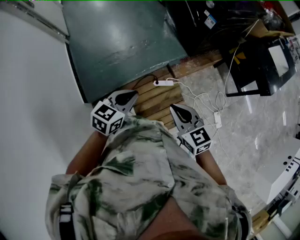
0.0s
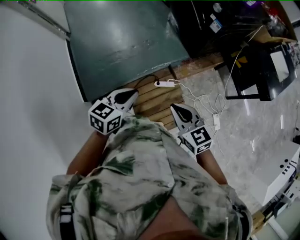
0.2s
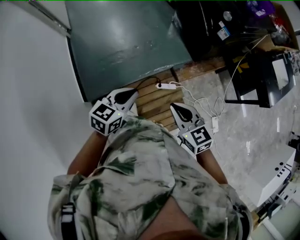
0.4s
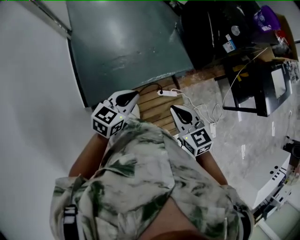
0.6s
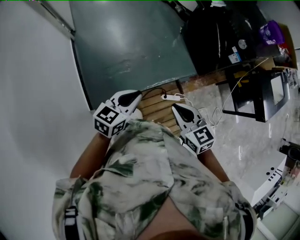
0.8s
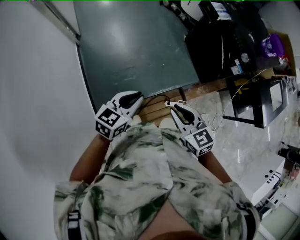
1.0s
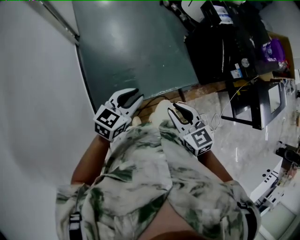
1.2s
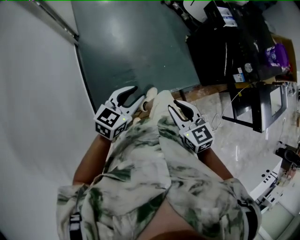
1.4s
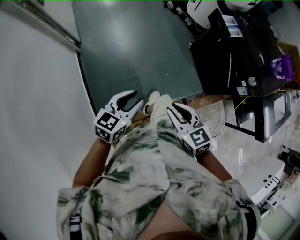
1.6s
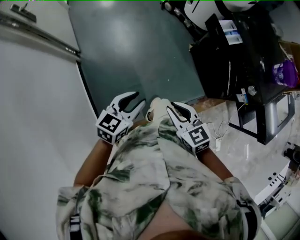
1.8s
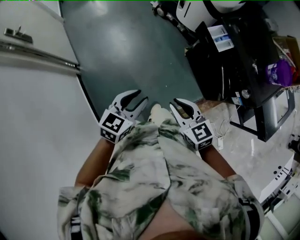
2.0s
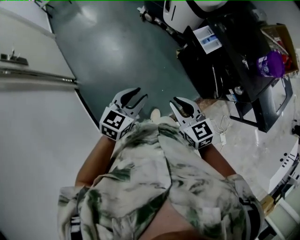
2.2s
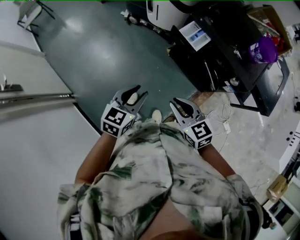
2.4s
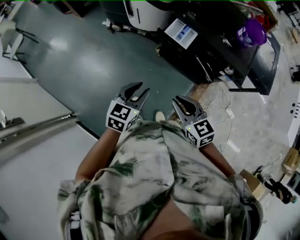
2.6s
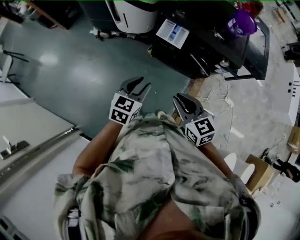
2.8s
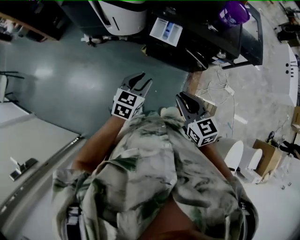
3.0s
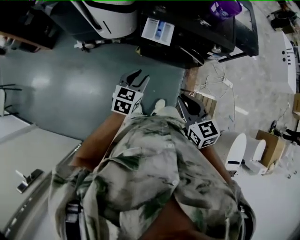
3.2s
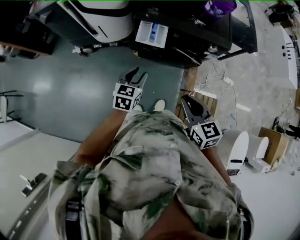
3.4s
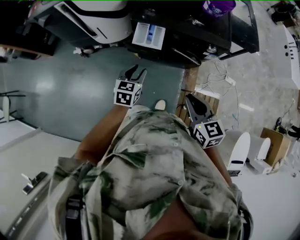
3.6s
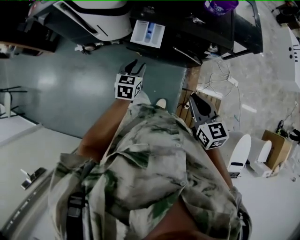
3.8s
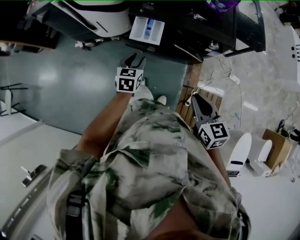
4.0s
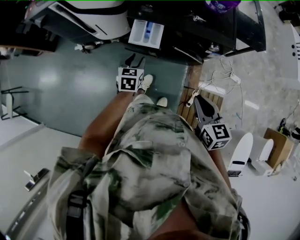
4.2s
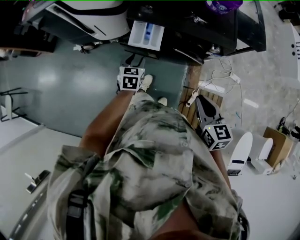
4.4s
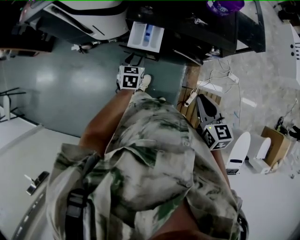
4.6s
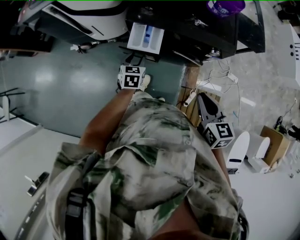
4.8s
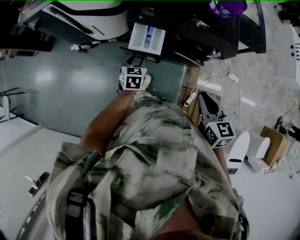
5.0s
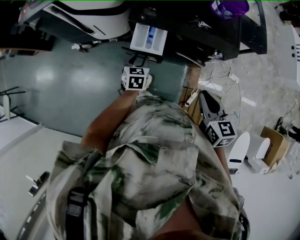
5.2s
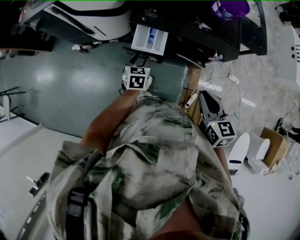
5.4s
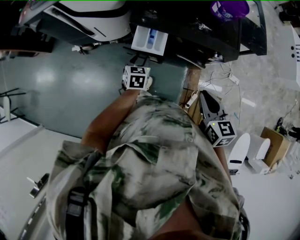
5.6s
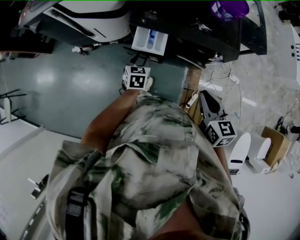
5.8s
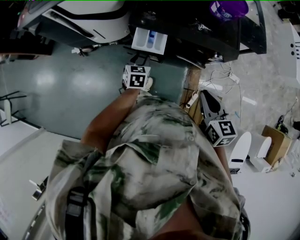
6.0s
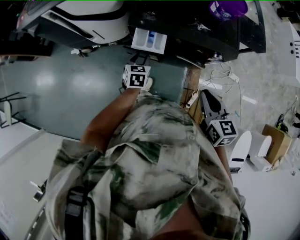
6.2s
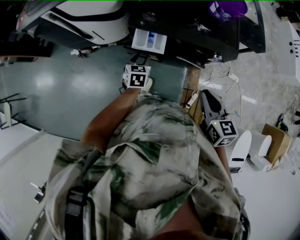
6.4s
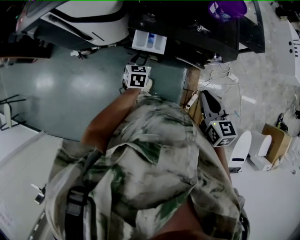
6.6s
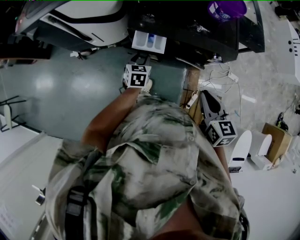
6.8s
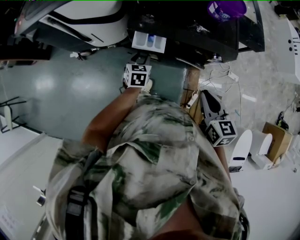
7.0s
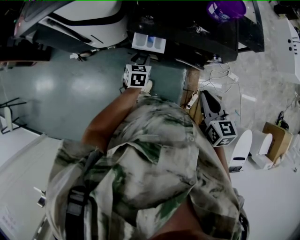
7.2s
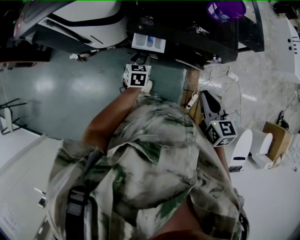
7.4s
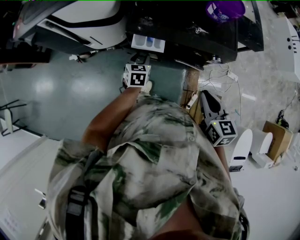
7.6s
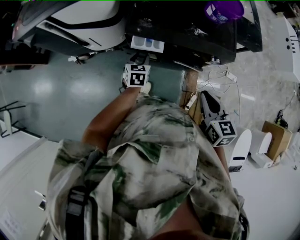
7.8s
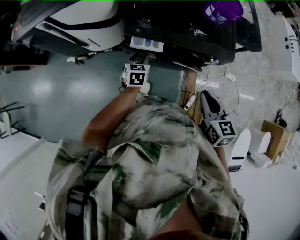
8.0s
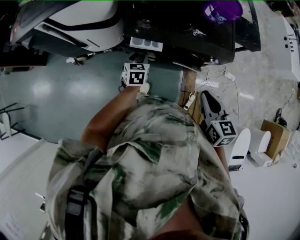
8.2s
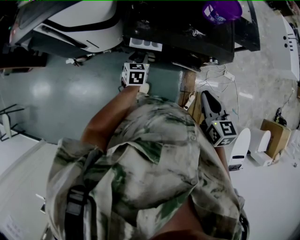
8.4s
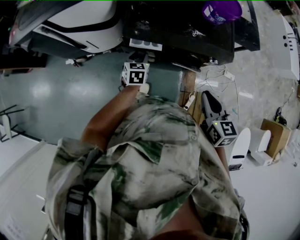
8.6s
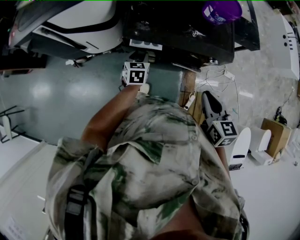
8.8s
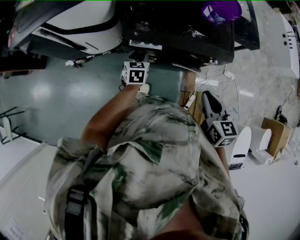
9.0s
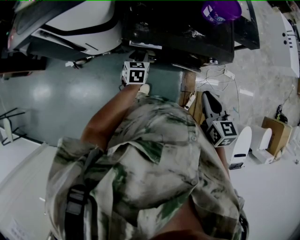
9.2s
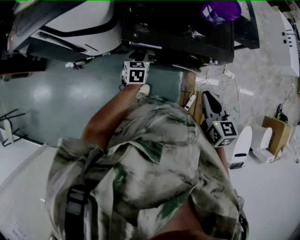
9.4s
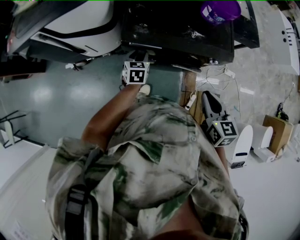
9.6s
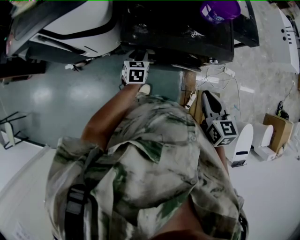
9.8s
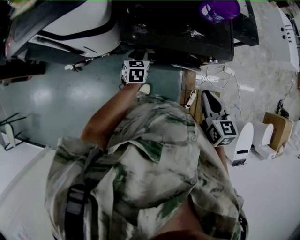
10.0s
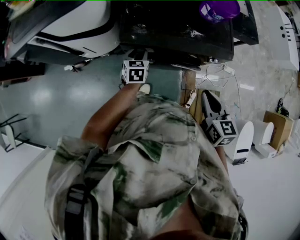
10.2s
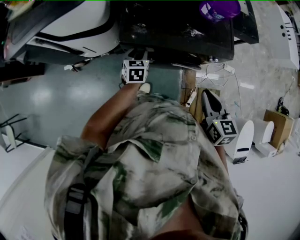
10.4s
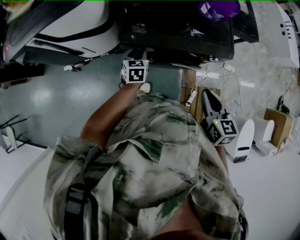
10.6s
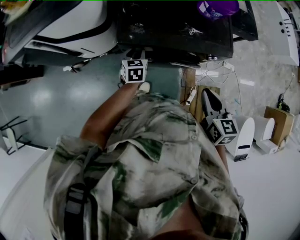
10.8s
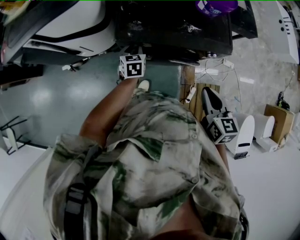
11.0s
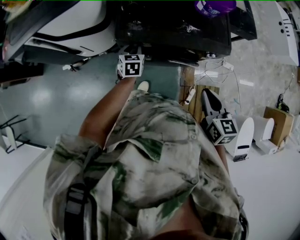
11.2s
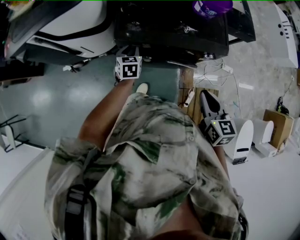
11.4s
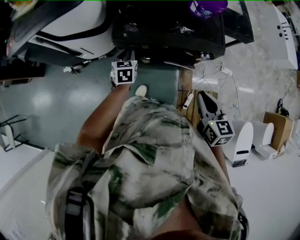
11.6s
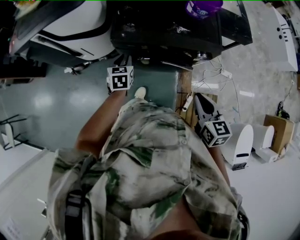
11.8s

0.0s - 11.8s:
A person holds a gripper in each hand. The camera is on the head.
0.0s - 1.4s: Both grippers are carried to the left and forward, roughly 40 cm. The right gripper opens. Meanwhile the left gripper opens.
1.4s - 3.0s: The two grippers travel together, roughly 50 cm. The left gripper turns by about 50 degrees. The right gripper turns by some 60 degrees.
3.0s - 4.4s: The right gripper is displaced to the right and forward by roughly 20 cm, and rotates some 20 degrees. The left gripper travels forward and downward by some 25 cm.
4.4s - 6.0s: The grippers both shift forward by roughly 5 cm.
6.0s - 7.4s: The grippers make only small movements.
7.4s - 8.8s: The grippers move only a little.
8.8s - 10.4s: There are only small adjustments of the grippers.
10.4s - 11.8s: The left gripper heads backward and upward, covering roughly 10 cm, while the right gripper shifts some 5 cm backward.

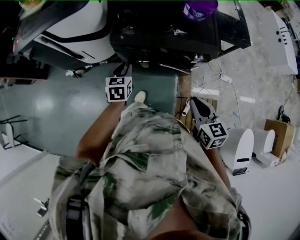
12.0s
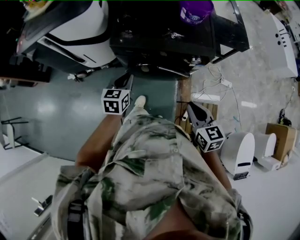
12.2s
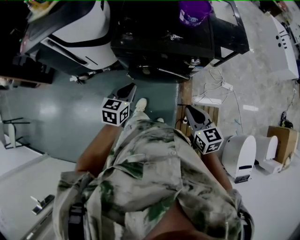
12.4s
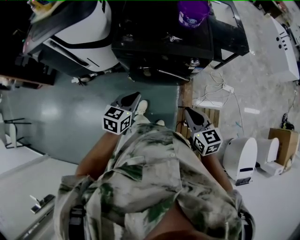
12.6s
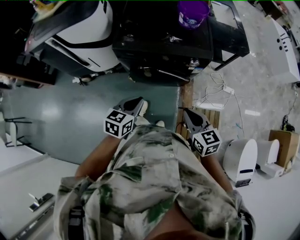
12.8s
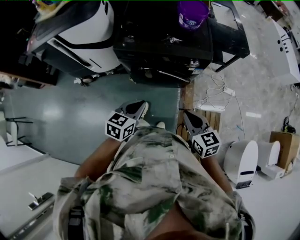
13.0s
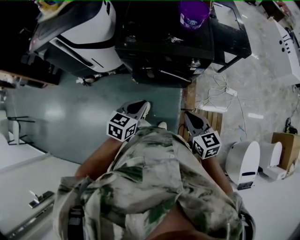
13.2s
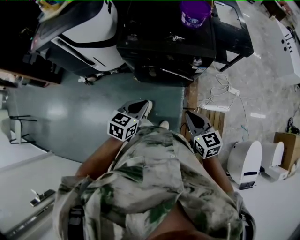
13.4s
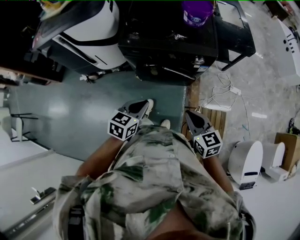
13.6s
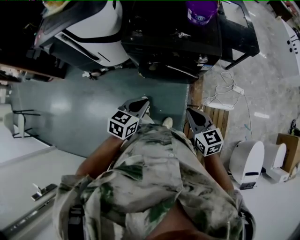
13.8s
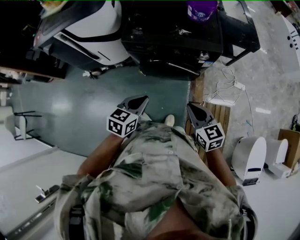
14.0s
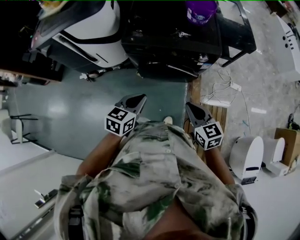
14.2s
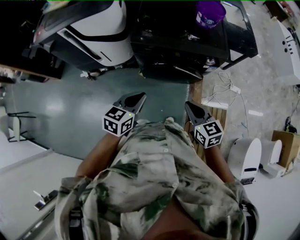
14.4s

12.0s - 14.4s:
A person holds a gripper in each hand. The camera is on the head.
12.0s - 13.2s: The right gripper heads backward, covering about 10 cm. The left gripper shifts roughly 25 cm backward and to the right, and swivels about 20 degrees.
13.2s - 14.4s: Both grippers travel together to the left, roughly 10 cm.

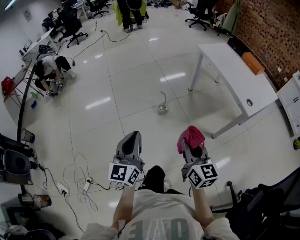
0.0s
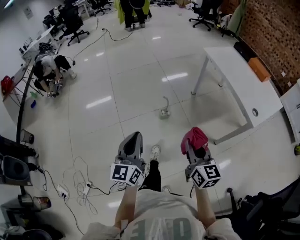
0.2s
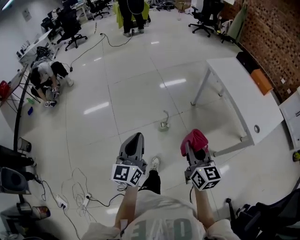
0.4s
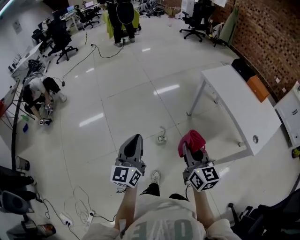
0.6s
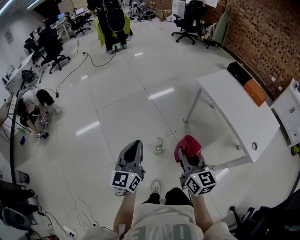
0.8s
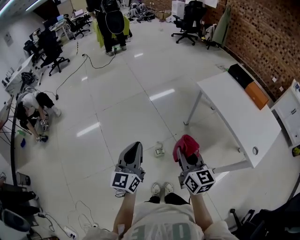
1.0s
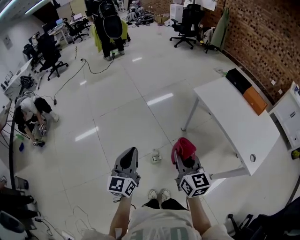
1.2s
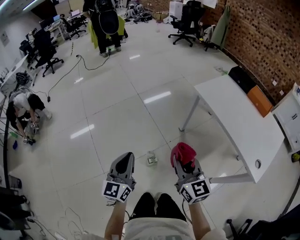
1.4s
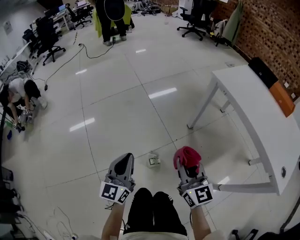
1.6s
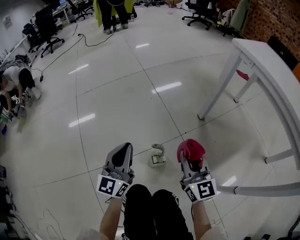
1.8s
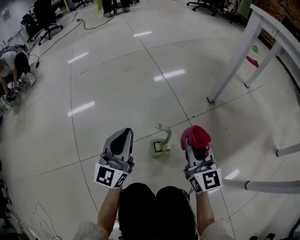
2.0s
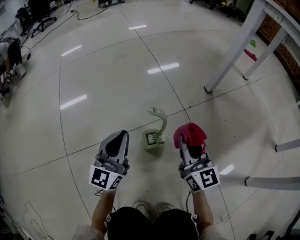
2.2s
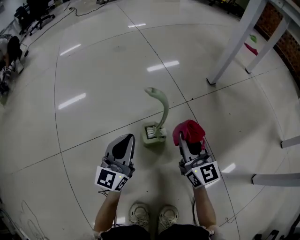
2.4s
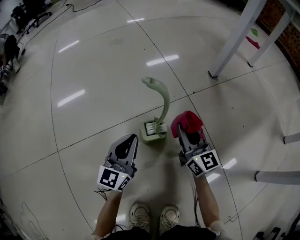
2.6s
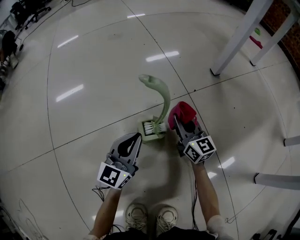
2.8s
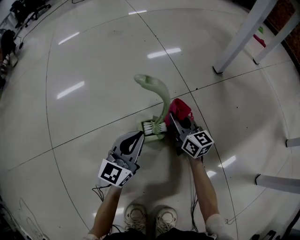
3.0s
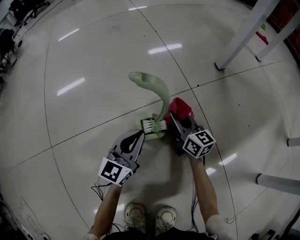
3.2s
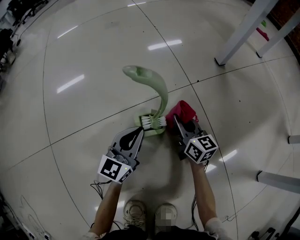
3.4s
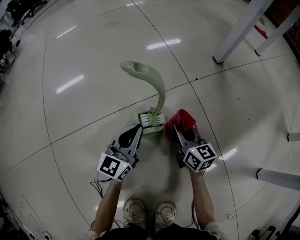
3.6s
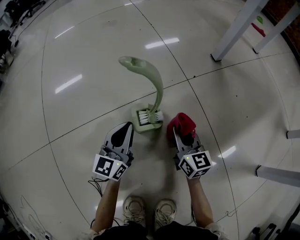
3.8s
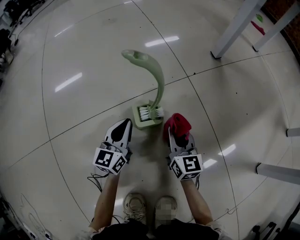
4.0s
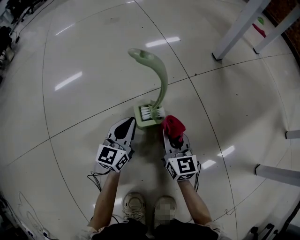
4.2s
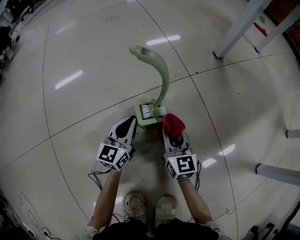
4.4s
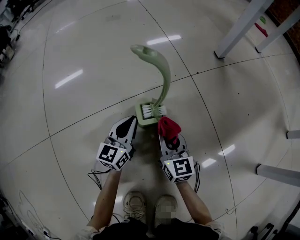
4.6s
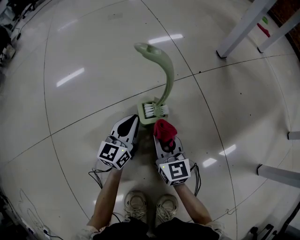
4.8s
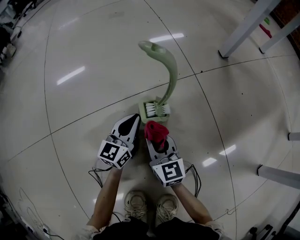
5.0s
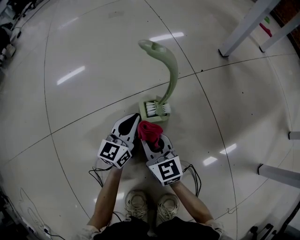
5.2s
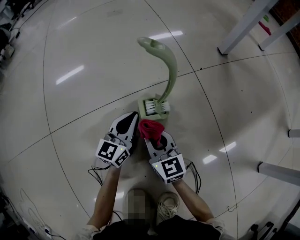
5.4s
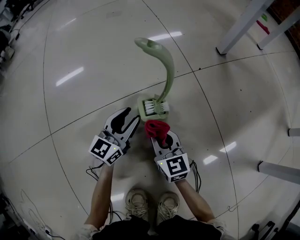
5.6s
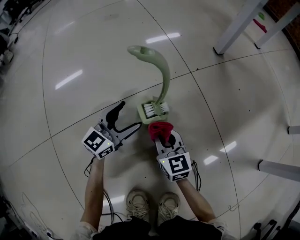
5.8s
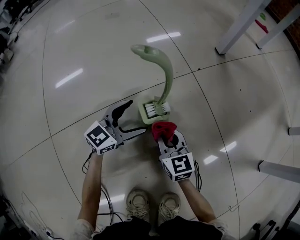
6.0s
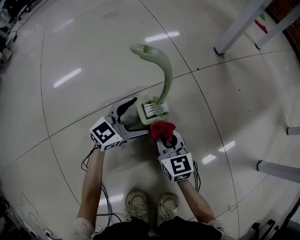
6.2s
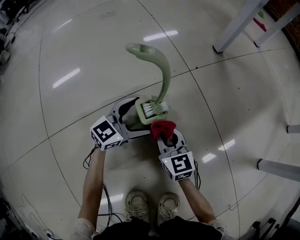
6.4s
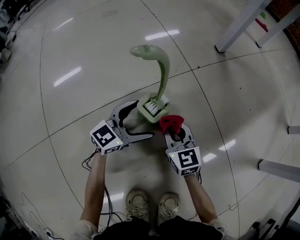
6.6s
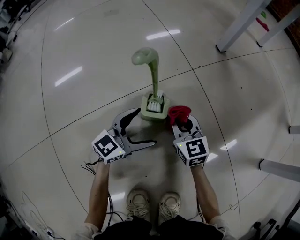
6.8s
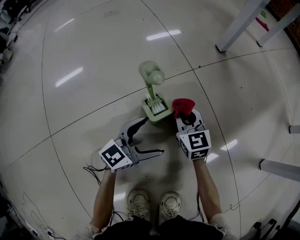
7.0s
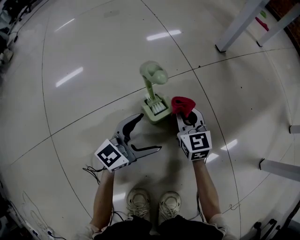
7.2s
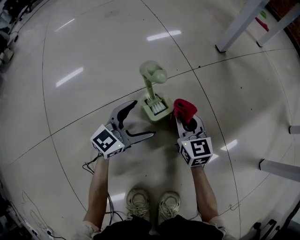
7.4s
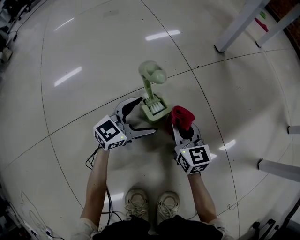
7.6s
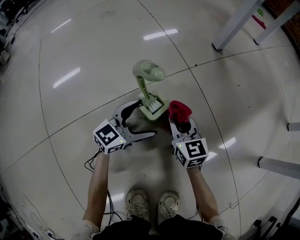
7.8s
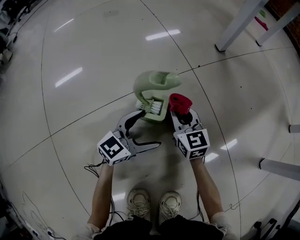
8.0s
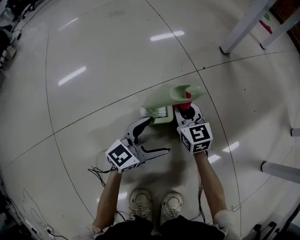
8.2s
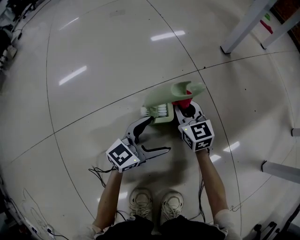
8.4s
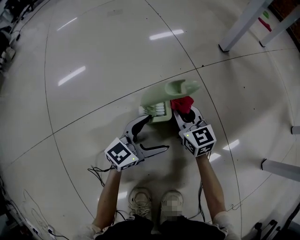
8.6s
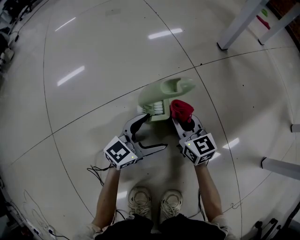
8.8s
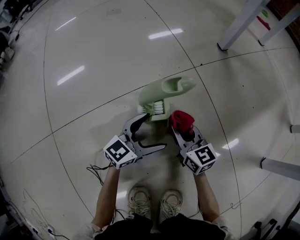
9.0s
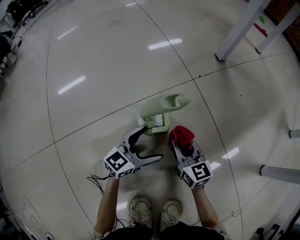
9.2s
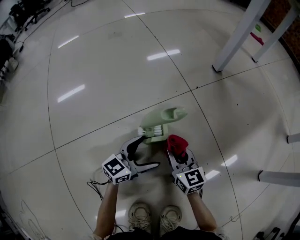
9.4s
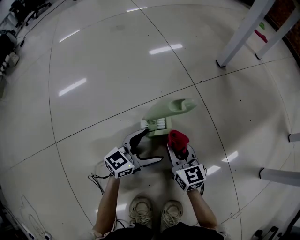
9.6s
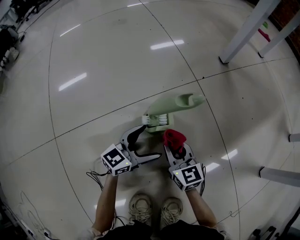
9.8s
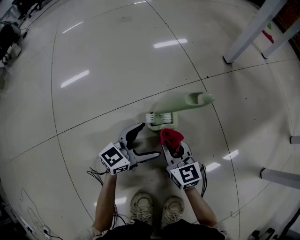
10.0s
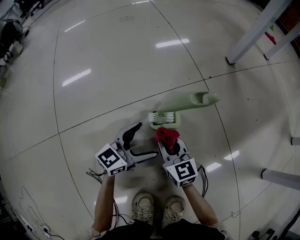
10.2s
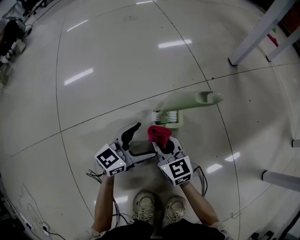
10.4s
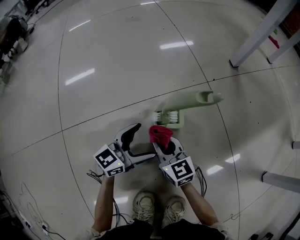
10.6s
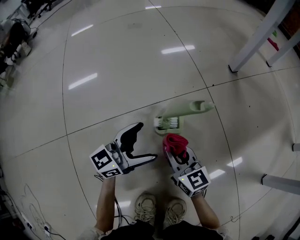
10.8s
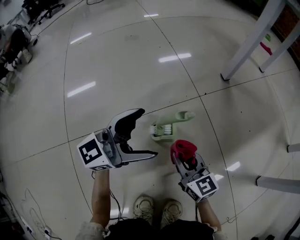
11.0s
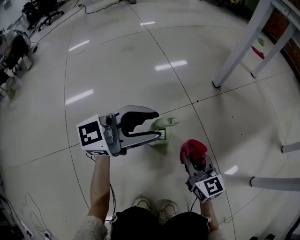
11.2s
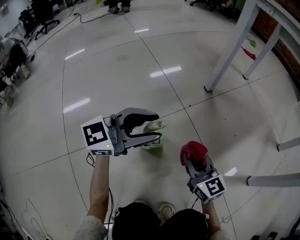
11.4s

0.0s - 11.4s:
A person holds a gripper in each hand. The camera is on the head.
0.0s - 1.4s: The pair of grippers is taken forward, some 50 cm.
1.4s - 2.8s: Both grippers move downward, some 80 cm.
2.8s - 4.2s: The left gripper goes approximately 10 cm downward. The right gripper is displaced backward by roughly 10 cm.
4.2s - 5.6s: The right gripper shifts roughly 5 cm to the left.
5.6s - 7.2s: The left gripper heads to the right, covering some 10 cm, swivels roughly 20 degrees, and opens its fingers, while the right gripper travels forward and to the right by some 10 cm.
7.2s - 8.6s: The grippers stay close to where they were, moving slightly.
8.6s - 10.0s: The right gripper travels backward by approximately 10 cm.
10.0s - 11.4s: The right gripper moves upward and to the right, roughly 20 cm, while the left gripper travels upward by about 30 cm, changes its angle by some 30 degrees, and closes up.
